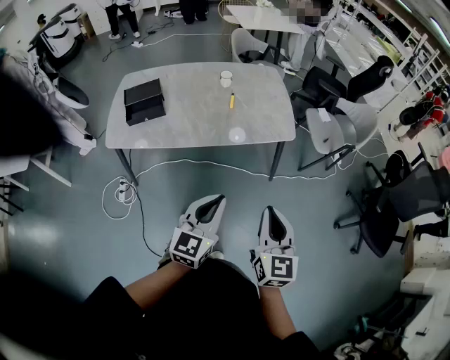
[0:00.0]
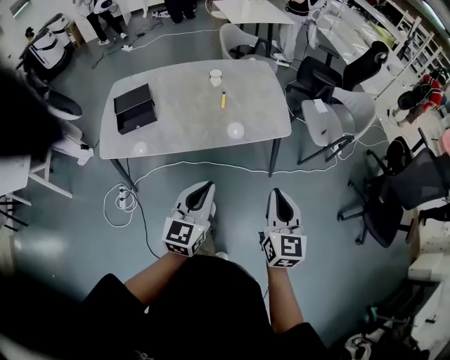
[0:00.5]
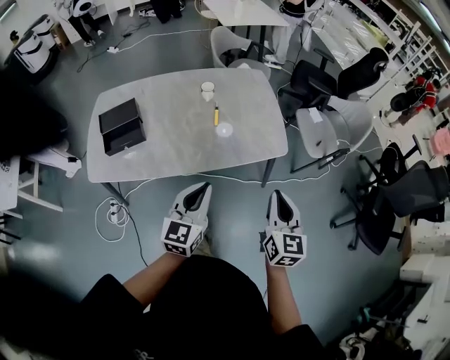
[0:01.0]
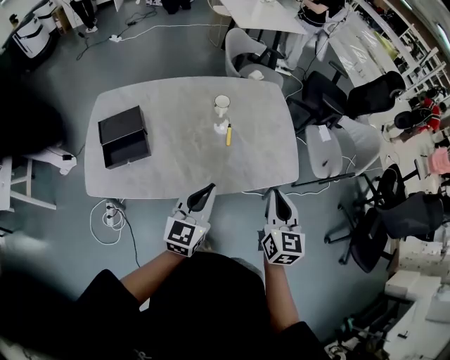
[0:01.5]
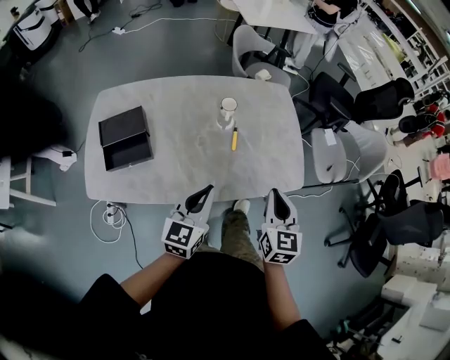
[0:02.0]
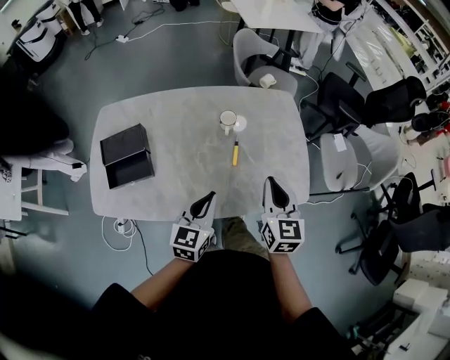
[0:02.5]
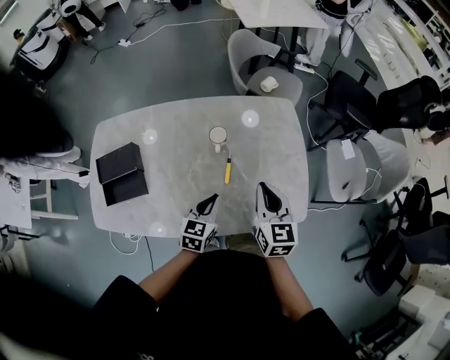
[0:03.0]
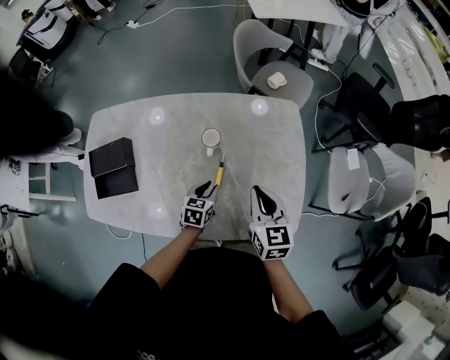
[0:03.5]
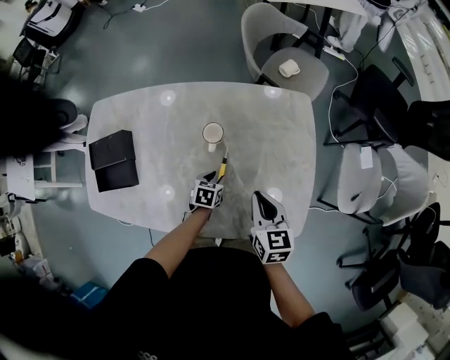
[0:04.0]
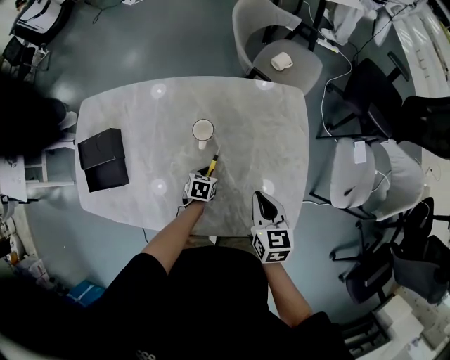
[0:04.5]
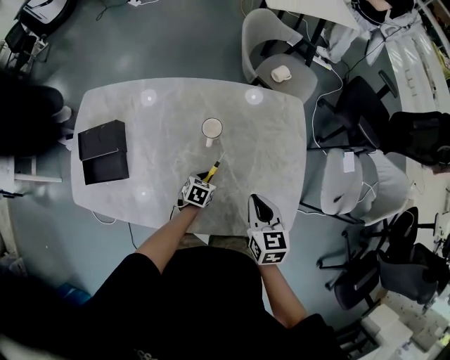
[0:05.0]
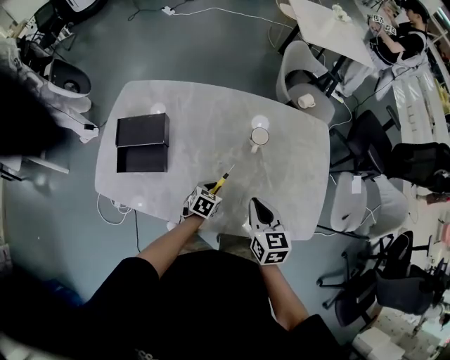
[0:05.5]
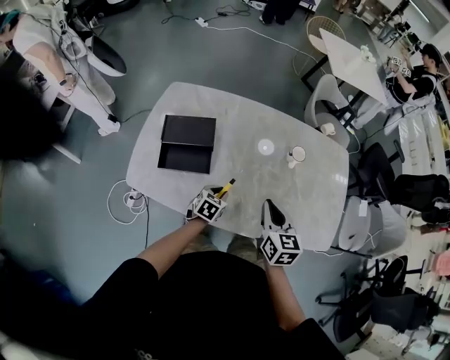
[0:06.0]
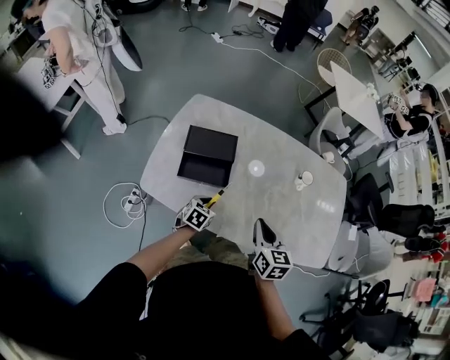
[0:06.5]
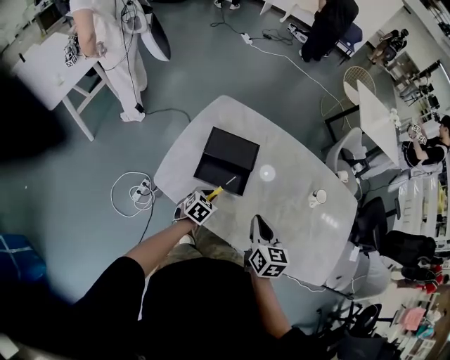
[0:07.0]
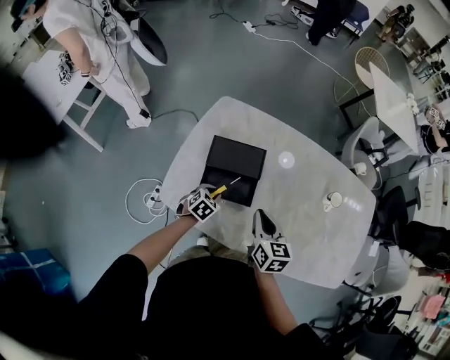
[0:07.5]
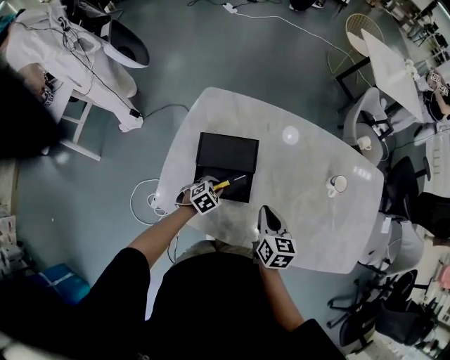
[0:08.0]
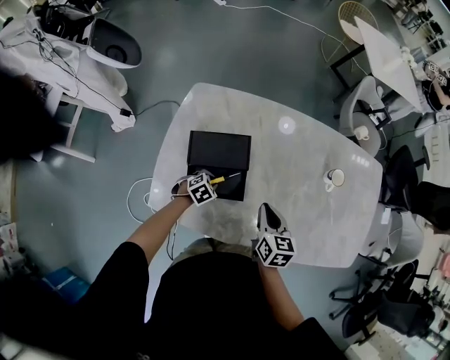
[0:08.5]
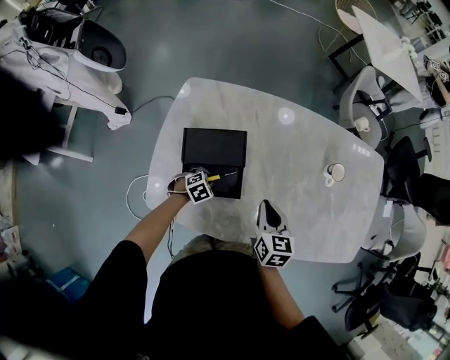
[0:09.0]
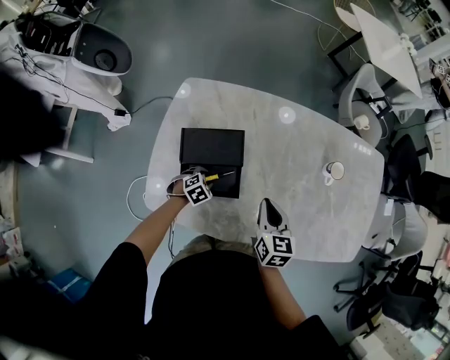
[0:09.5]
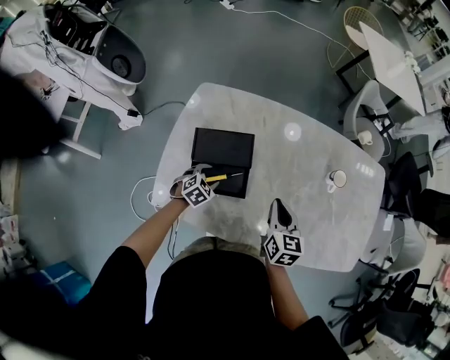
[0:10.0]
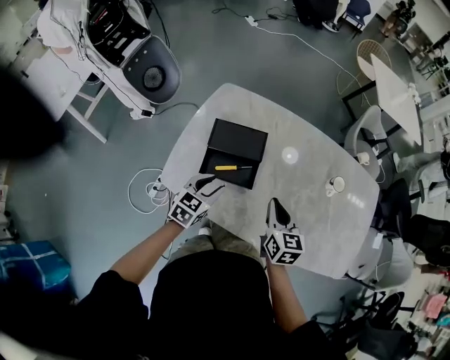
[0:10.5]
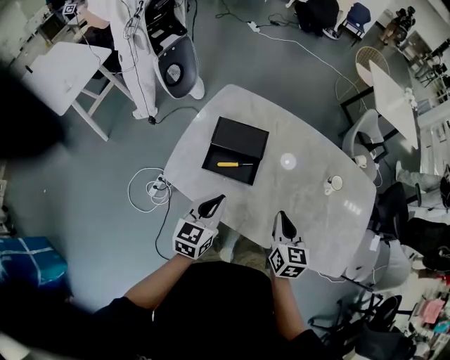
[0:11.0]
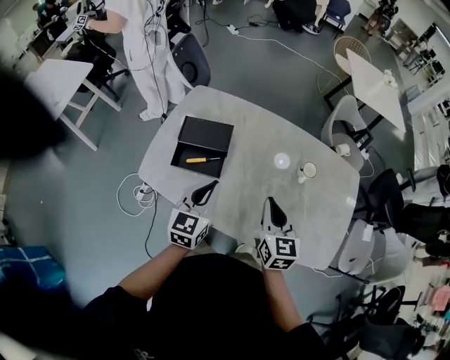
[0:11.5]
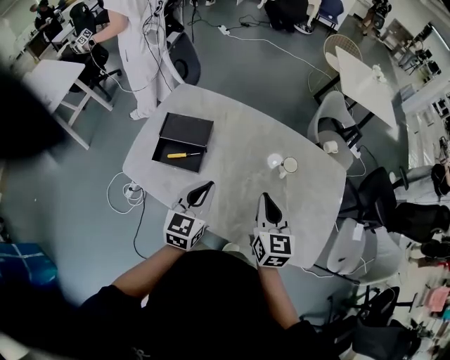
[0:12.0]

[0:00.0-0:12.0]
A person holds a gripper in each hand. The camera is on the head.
0:00.0 to 0:02.0: The right gripper travels forward by roughly 40 cm. The left gripper shifts roughly 40 cm forward and to the left.
0:02.0 to 0:04.0: The left gripper shifts roughly 40 cm downward and forward, tilts its fingers approximately 50 degrees downward, and opens up. Meanwhile the right gripper travels forward and downward by about 30 cm, and turns by about 30 degrees.
0:04.0 to 0:06.0: Both grippers travel together to the left and backward, approximately 30 cm.
0:06.0 to 0:08.0: The right gripper heads to the left and downward, covering some 20 cm; the left gripper is displaced to the left by approximately 20 cm, and changes its angle by approximately 20 degrees.
0:08.0 to 0:10.0: The left gripper opens up, while the right gripper ends up some 5 cm from where it was.
0:10.0 to 0:12.0: The right gripper heads to the right, upward and backward, covering some 20 cm; the left gripper heads upward, to the right and backward, covering approximately 40 cm, tips its fingers upward by approximately 40 degrees, and closes up.

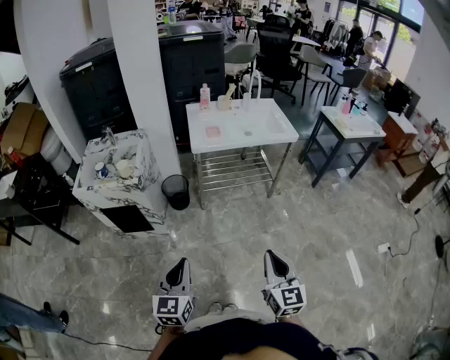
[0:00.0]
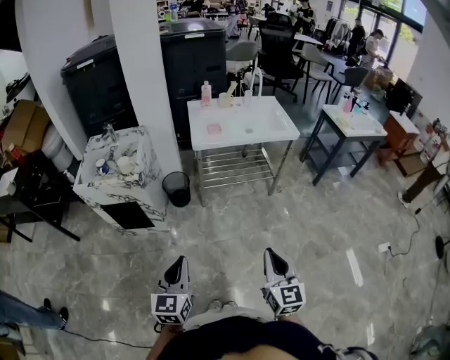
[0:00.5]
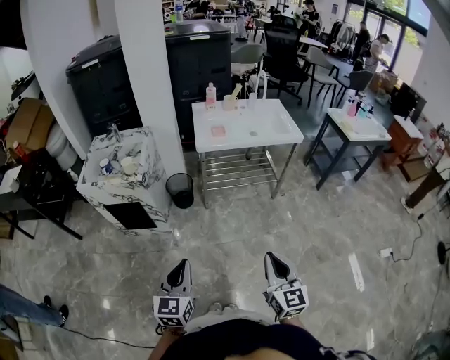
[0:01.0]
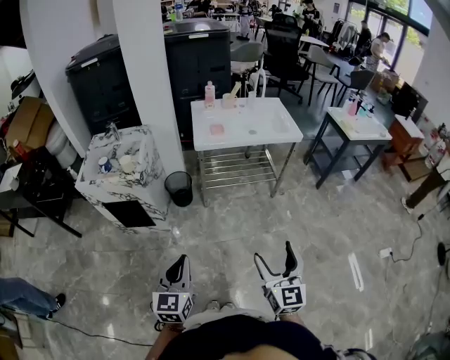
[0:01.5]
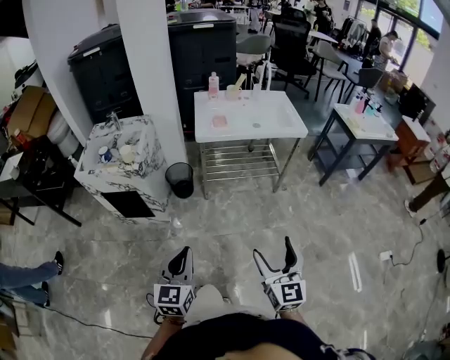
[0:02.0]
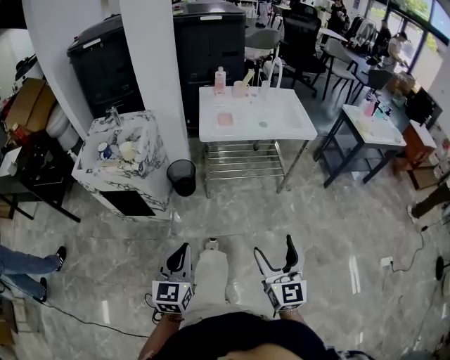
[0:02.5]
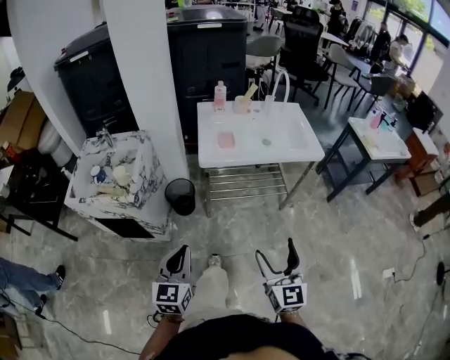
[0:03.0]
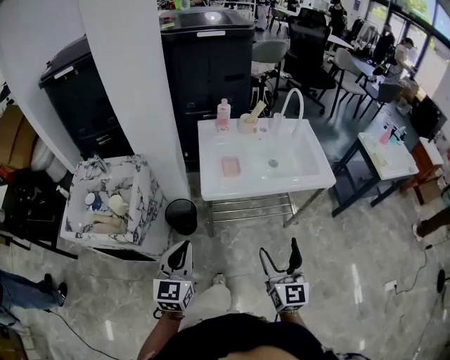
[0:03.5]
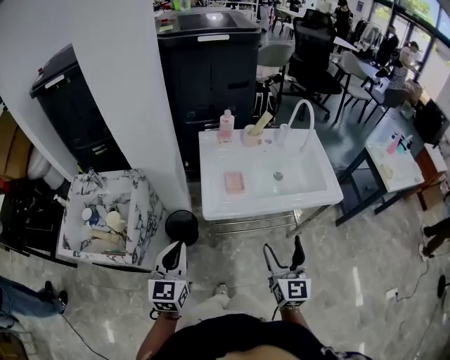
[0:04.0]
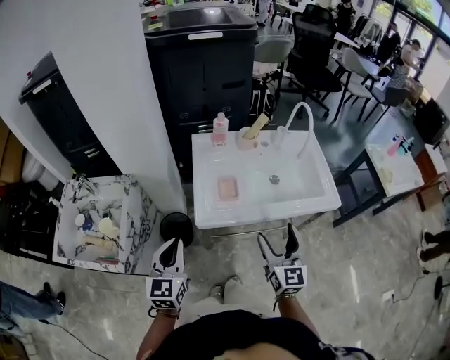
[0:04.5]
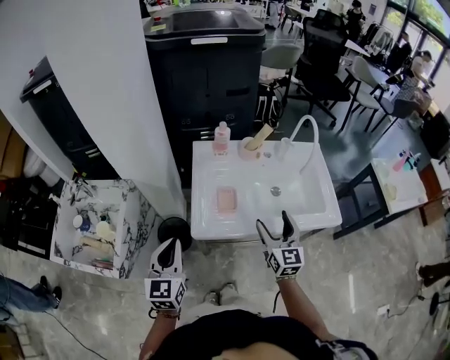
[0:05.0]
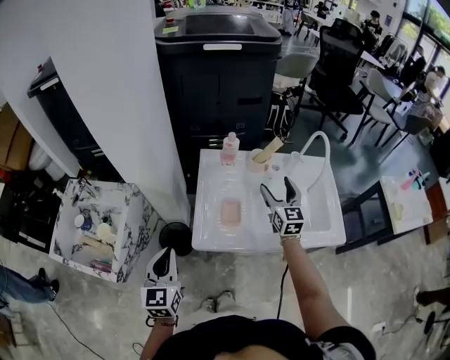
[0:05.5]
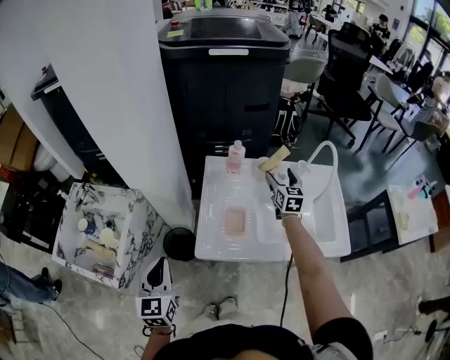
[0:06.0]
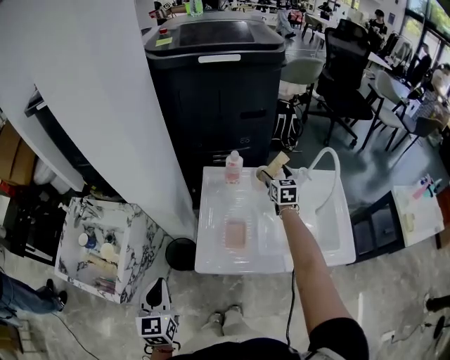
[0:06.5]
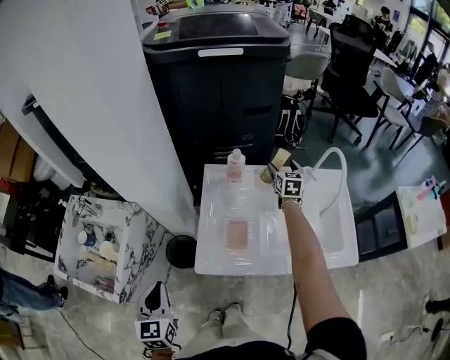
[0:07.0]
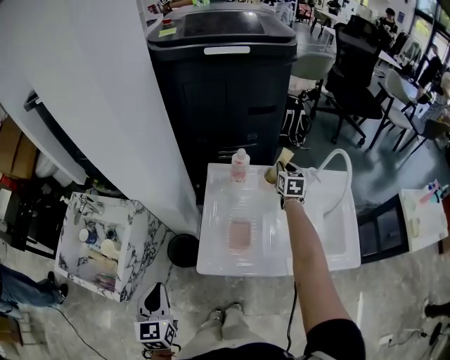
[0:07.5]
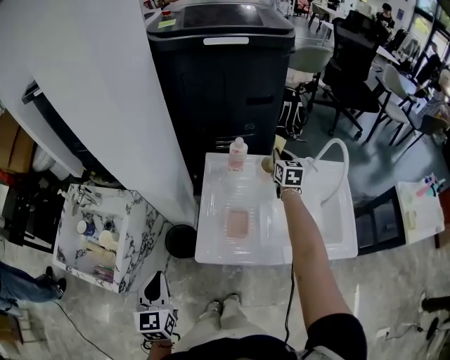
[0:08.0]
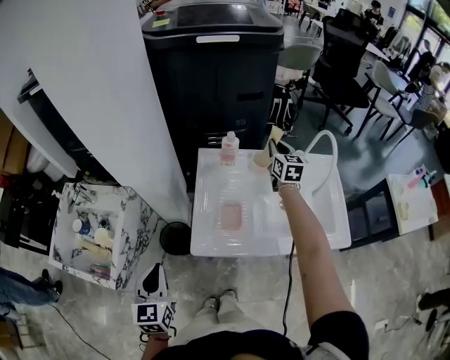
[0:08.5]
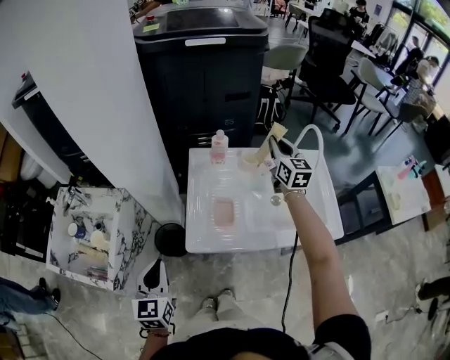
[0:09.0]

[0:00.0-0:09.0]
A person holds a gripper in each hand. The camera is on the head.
0:00.0 to 0:02.0: The right gripper opens up.
0:02.0 to 0:04.5: Both grippers are carried forward, approximately 60 cm.
0:04.5 to 0:07.0: The right gripper is displaced forward by roughly 50 cm, while the left gripper changes place by approximately 5 cm, and changes its angle by about 20 degrees.
0:07.0 to 0:09.0: The right gripper is displaced upward and backward by about 20 cm, turns by roughly 20 degrees, and closes up.

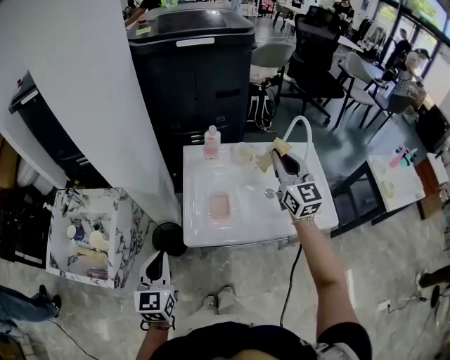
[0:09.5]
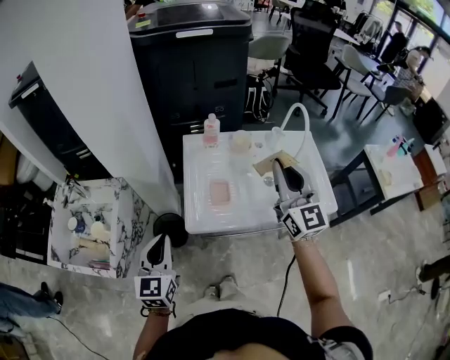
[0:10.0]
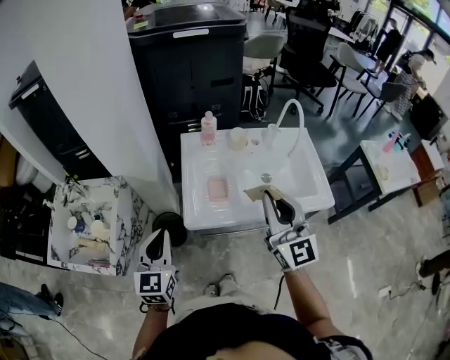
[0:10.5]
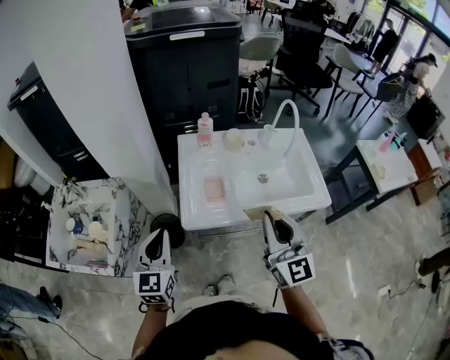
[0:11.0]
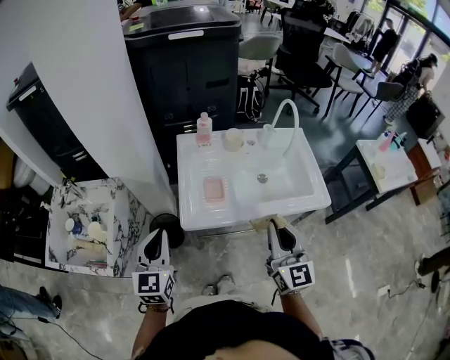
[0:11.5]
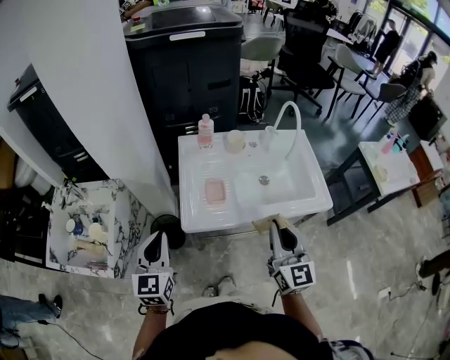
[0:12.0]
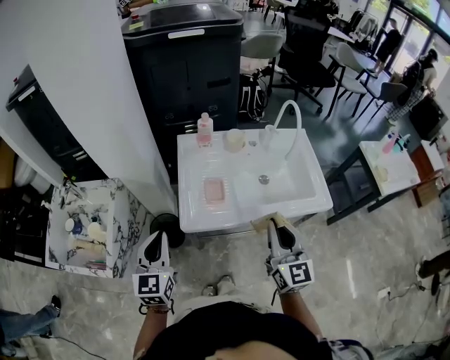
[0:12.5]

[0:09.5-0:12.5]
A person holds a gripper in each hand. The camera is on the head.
0:09.5 to 0:11.0: The right gripper shifts about 25 cm backward.
0:11.0 to 0:12.5: The right gripper moves downward, about 5 cm.

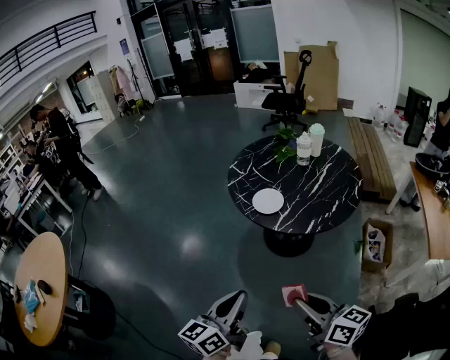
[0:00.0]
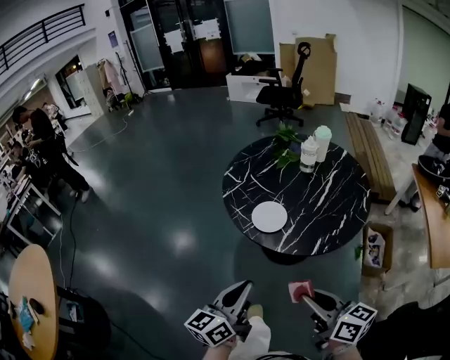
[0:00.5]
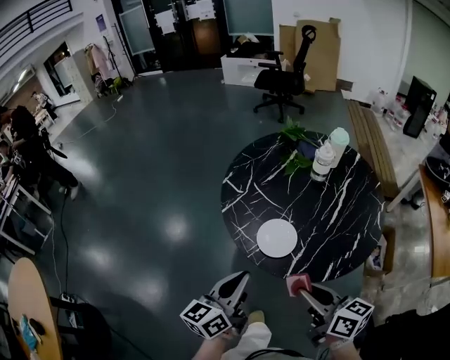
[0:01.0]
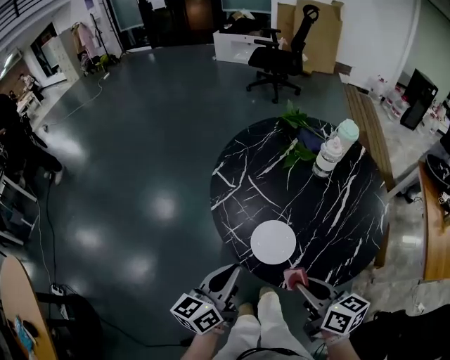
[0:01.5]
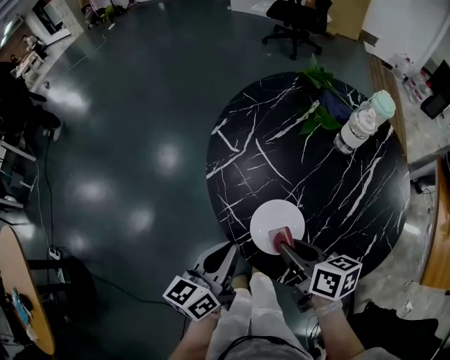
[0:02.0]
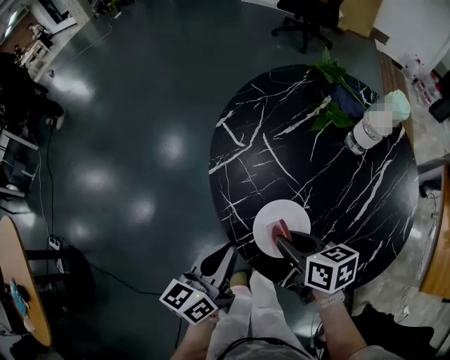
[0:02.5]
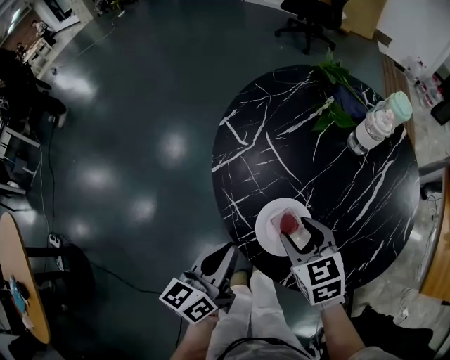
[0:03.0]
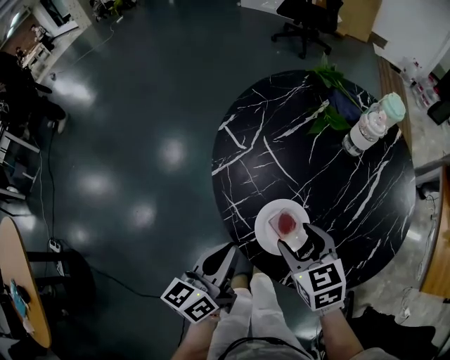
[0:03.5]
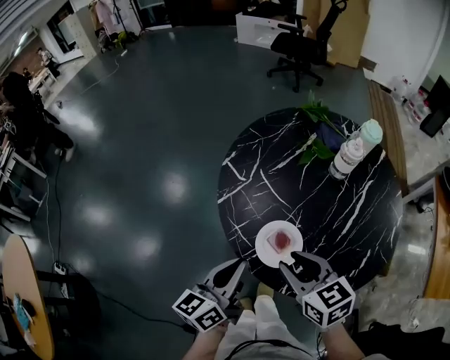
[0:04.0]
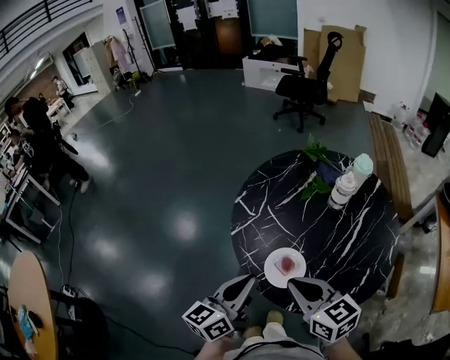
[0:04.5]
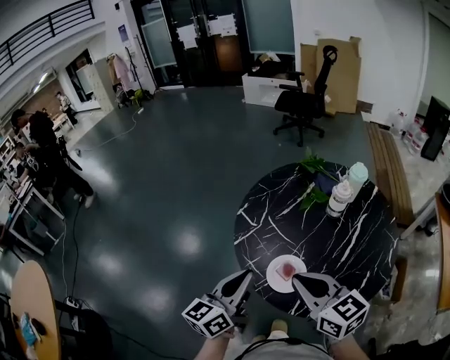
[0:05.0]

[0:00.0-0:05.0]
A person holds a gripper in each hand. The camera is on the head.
0:00.0 to 0:02.5: The two grippers travel together, forward, about 50 cm. The right gripper heads downward, covering approximately 20 cm, and tilts its fingers roughly 30 degrees downward.
0:02.5 to 0:05.0: Both grippers travel together upward, roughly 20 cm. The right gripper turns by about 40 degrees, and opens and closes again.
